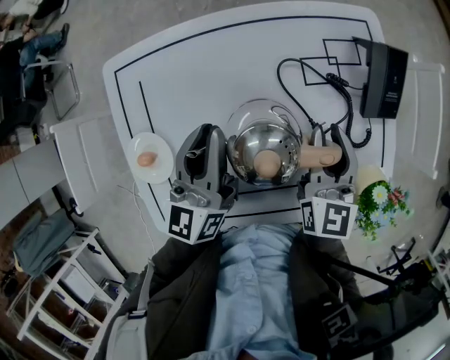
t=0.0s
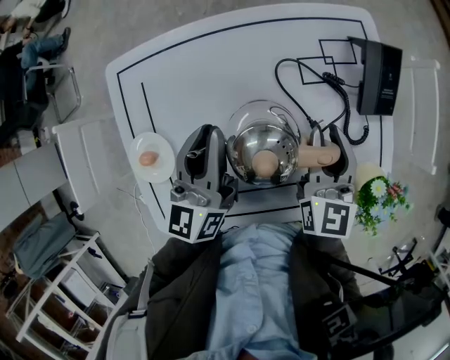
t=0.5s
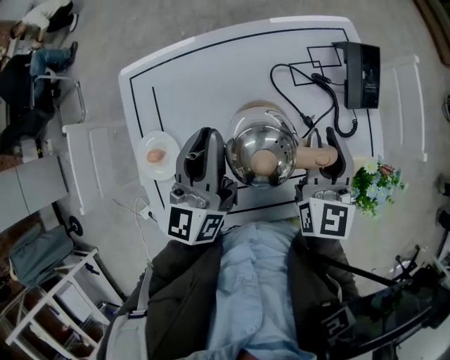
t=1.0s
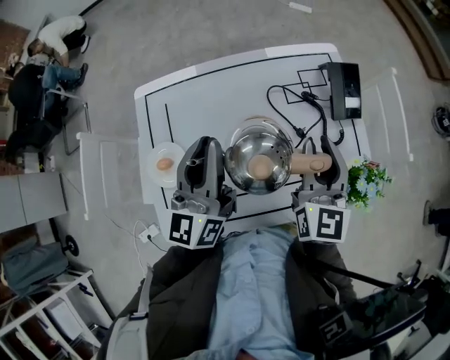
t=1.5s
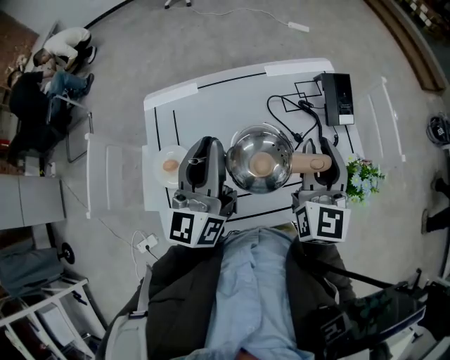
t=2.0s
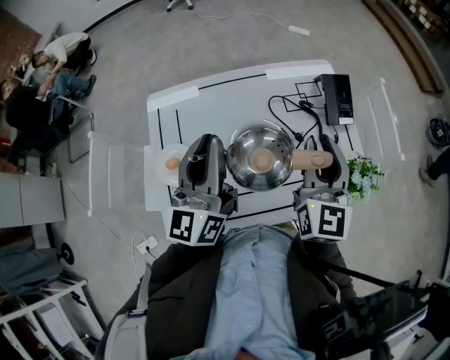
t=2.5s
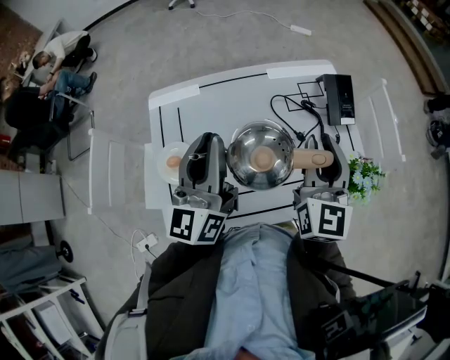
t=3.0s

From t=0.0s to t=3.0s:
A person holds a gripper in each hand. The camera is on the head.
From t=0.0s to t=1.5s: The two grippers go some 10 cm upward and backward.
From t=1.5s to t=3.0s: The grippers move only a little.

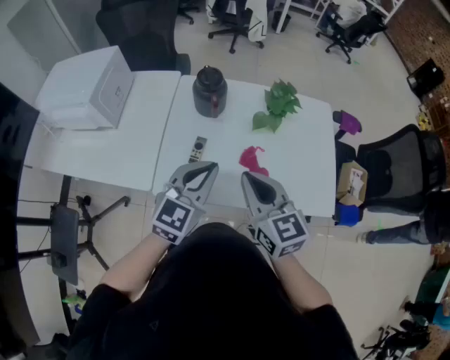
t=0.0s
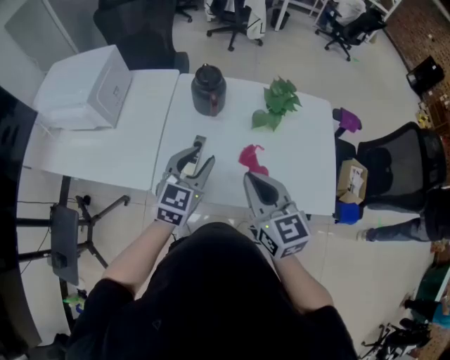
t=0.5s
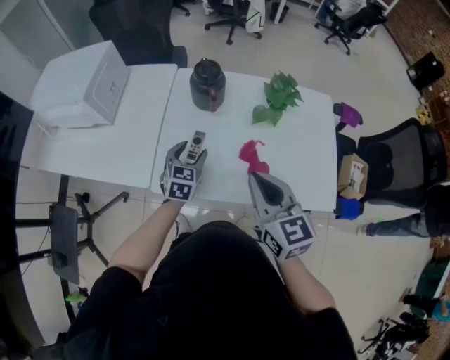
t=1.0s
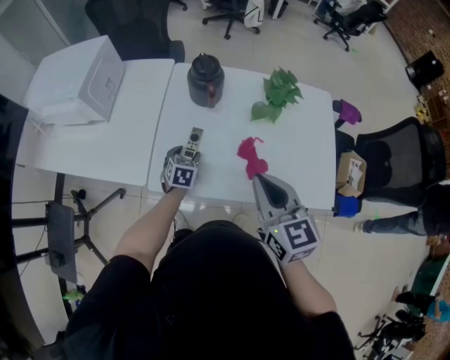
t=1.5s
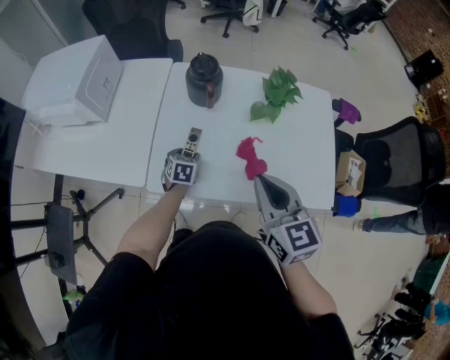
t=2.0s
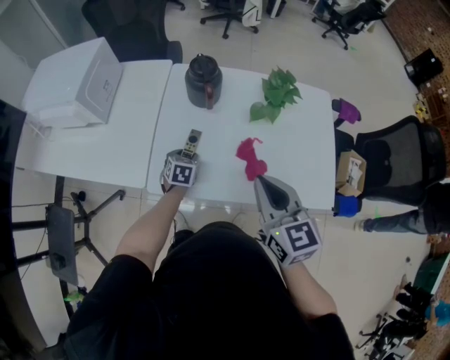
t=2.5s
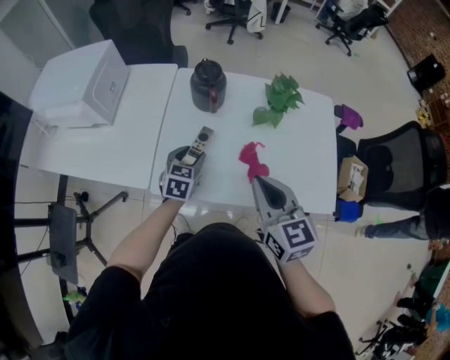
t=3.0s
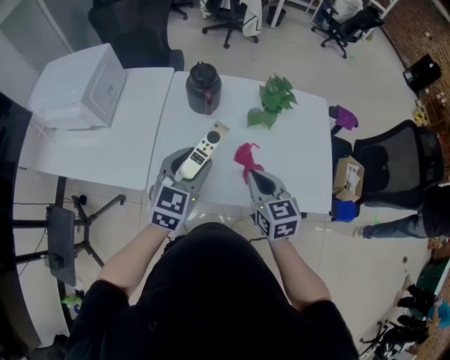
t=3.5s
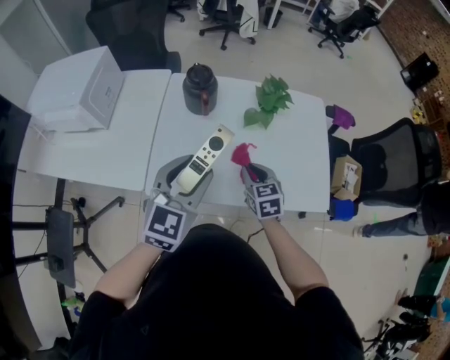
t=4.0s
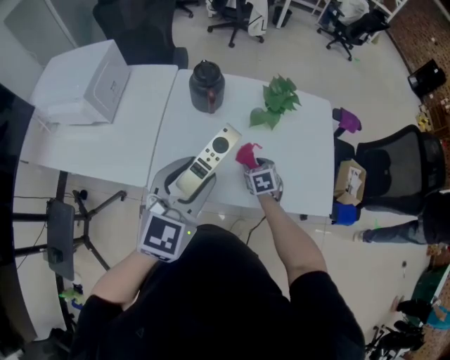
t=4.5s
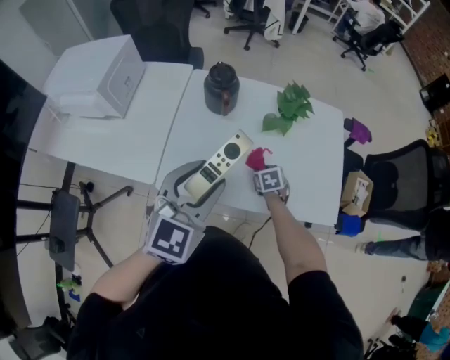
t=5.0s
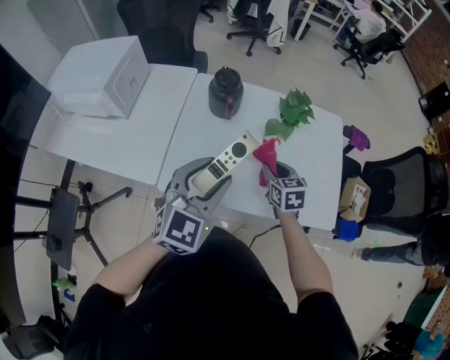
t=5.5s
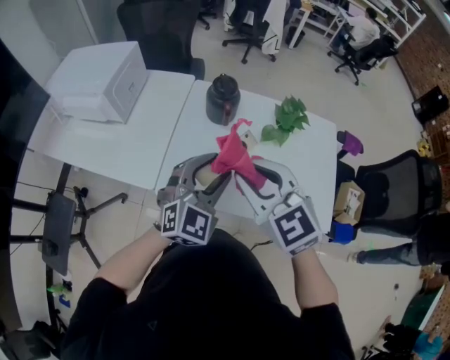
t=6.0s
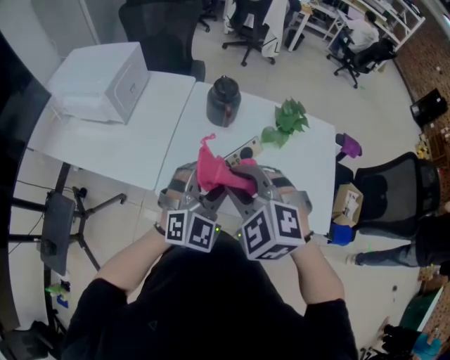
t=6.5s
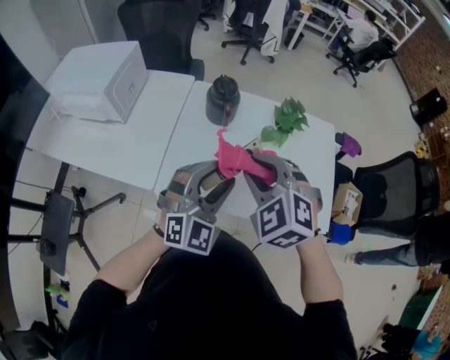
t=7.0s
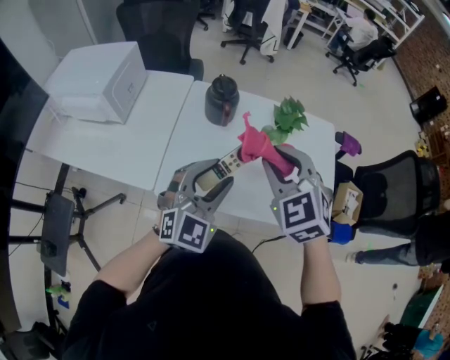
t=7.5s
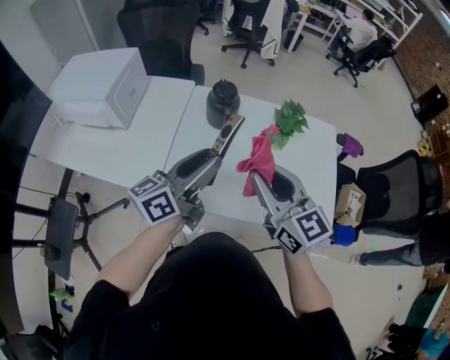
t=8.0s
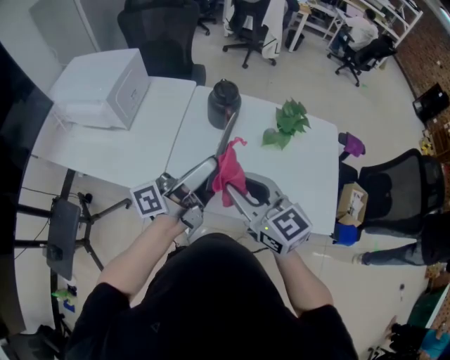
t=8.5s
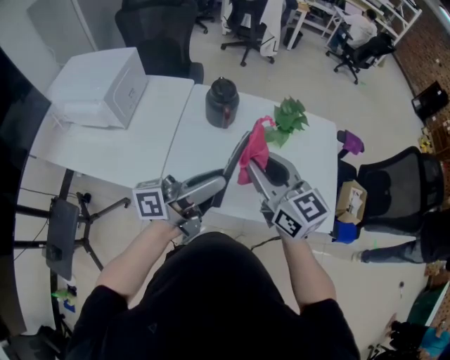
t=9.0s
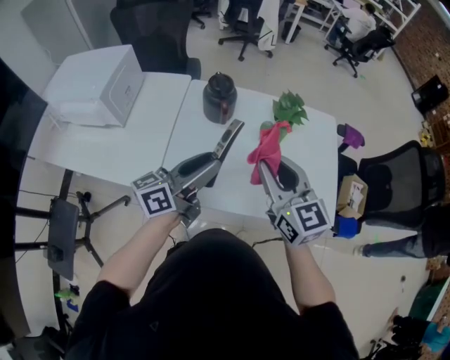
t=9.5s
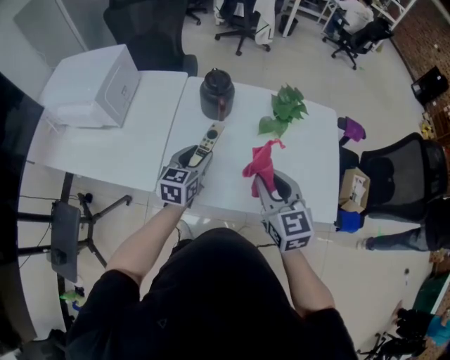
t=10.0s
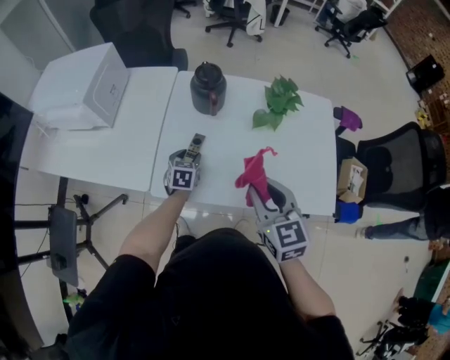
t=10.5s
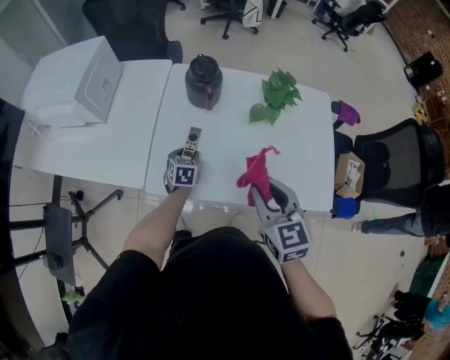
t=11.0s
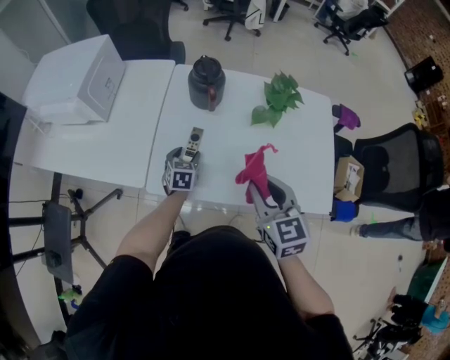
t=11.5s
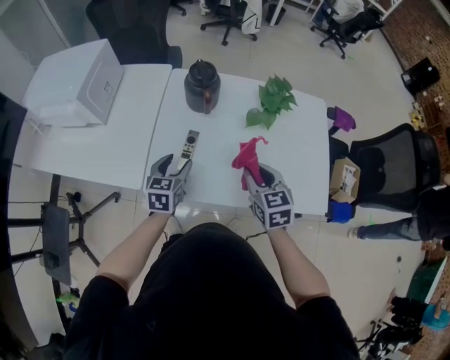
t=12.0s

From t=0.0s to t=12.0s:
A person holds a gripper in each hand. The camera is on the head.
From t=0.0s to t=2.0s: The left gripper travels downward by some 30 cm, tips its fingers downward by some 40 degrees, and opens up.
From t=2.0s to t=4.0s: The left gripper travels upward by approximately 30 cm, and tilts its fingers approximately 40 degrees upward; the right gripper heads downward and forward, covering some 15 cm.
From t=4.0s to t=6.0s: The right gripper shifts about 25 cm upward and to the left, turns by some 40 degrees, and opens and closes again.
From t=6.0s to t=8.0s: The left gripper moves about 5 cm, and twists some 70 degrees counterclockwise, seen from behind. The right gripper swivels approximately 30 degrees.
From t=8.0s to t=10.0s: The left gripper travels downward by some 20 cm, and angles its fingers downward, by about 30 degrees; the right gripper travels downward by approximately 10 cm, and swivels some 20 degrees.
From t=10.0s to t=12.0s: The right gripper travels downward by roughly 10 cm; the left gripper reaches about 20 cm downward, then returns.

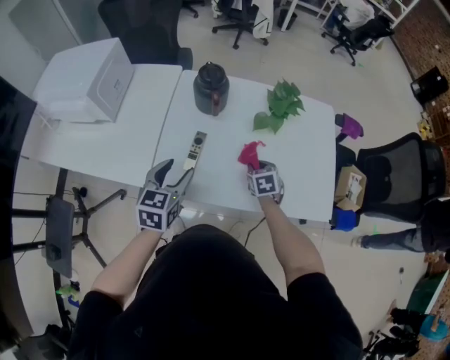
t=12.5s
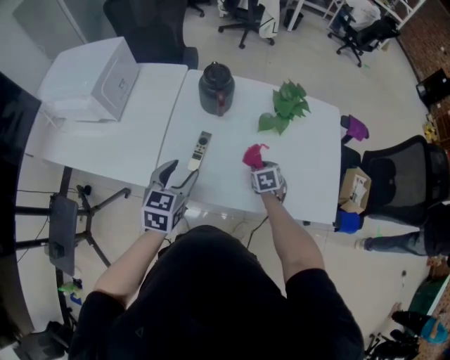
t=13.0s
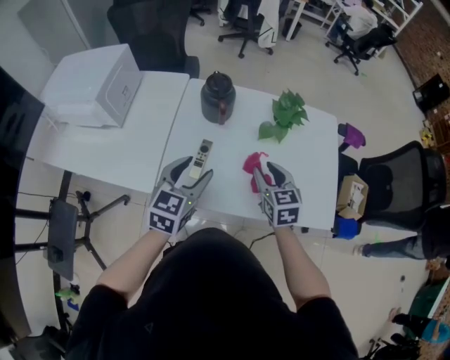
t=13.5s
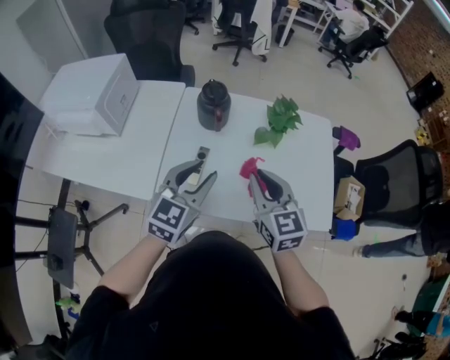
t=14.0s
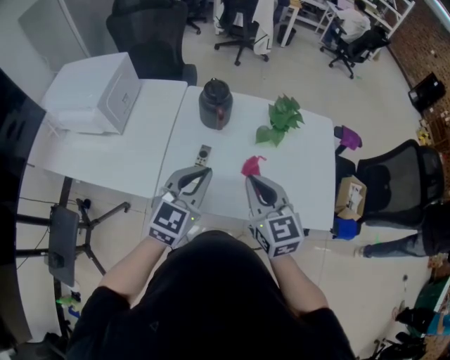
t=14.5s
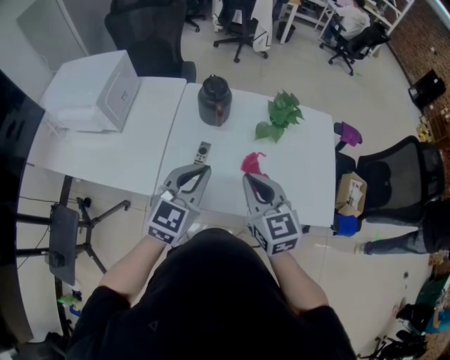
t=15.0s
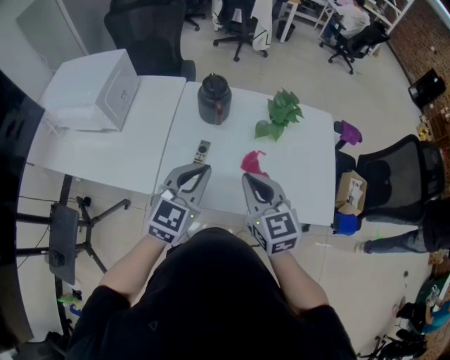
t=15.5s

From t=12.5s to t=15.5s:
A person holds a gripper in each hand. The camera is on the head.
From t=12.5s to t=14.0s: The left gripper is displaced upward and to the right by some 10 cm, changes its angle by about 20 degrees, and closes; the right gripper is displaced upward by roughly 25 cm, and points its fingers approximately 40 degrees further upward.
From t=14.0s to t=15.5s: The left gripper closes up.

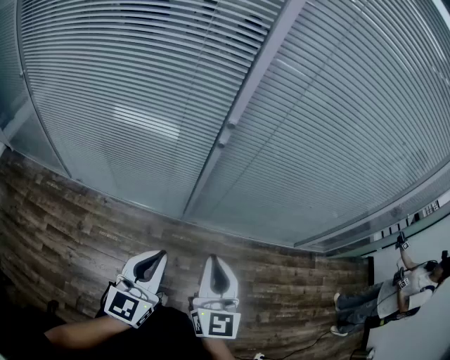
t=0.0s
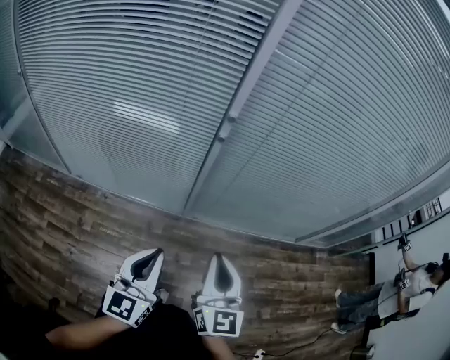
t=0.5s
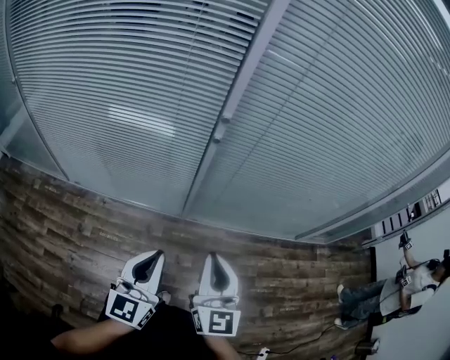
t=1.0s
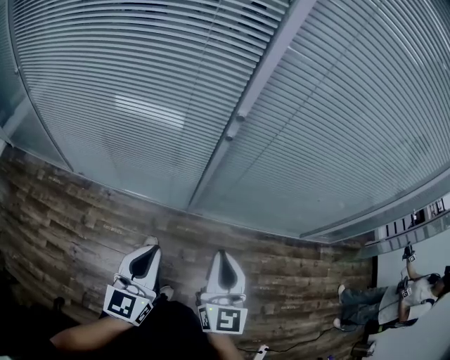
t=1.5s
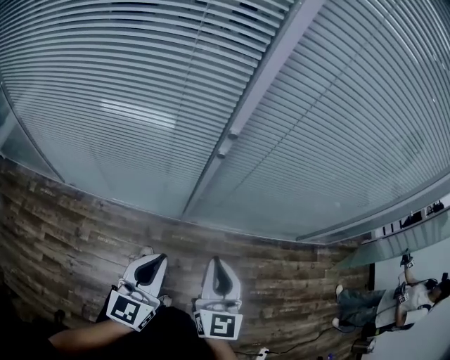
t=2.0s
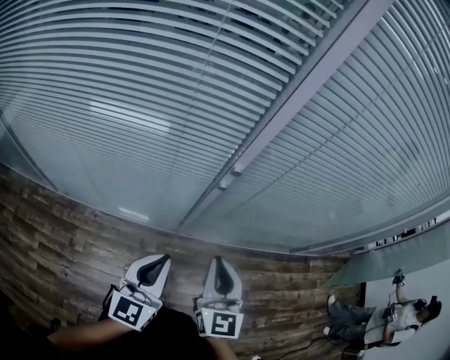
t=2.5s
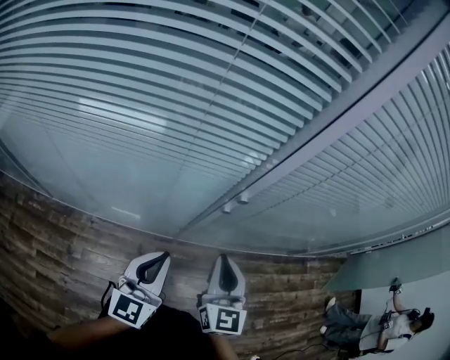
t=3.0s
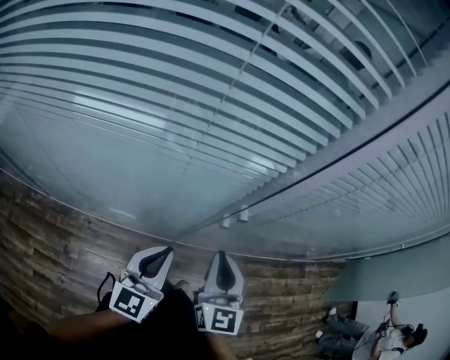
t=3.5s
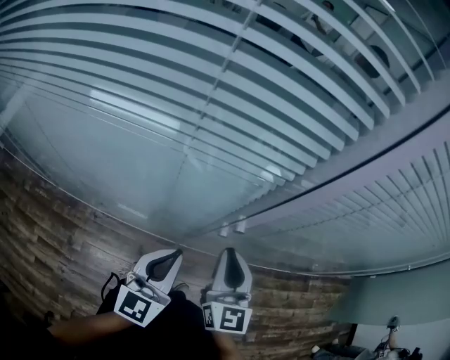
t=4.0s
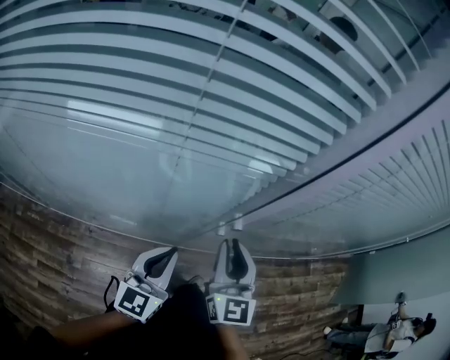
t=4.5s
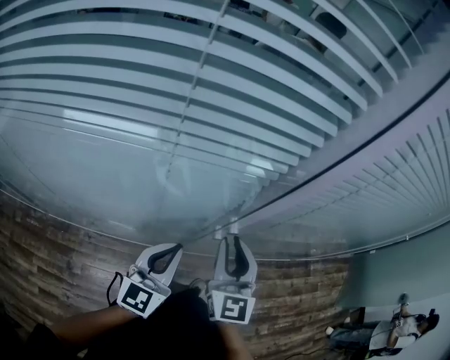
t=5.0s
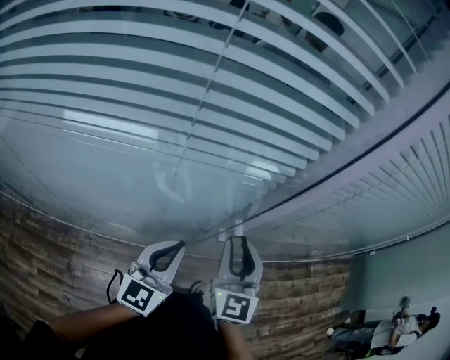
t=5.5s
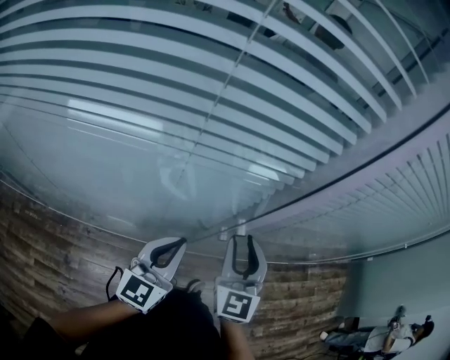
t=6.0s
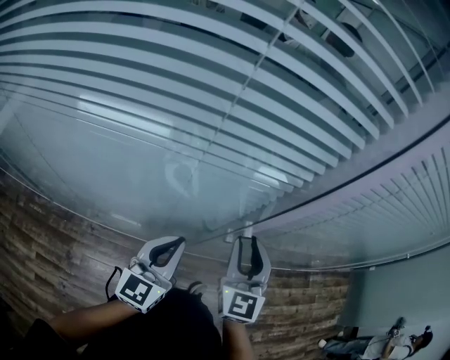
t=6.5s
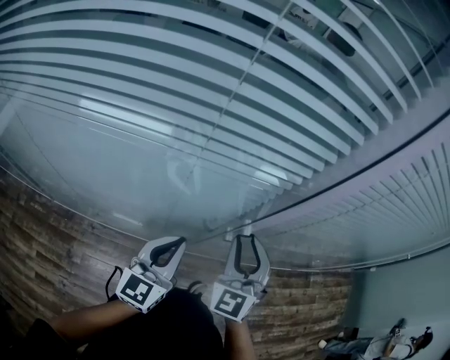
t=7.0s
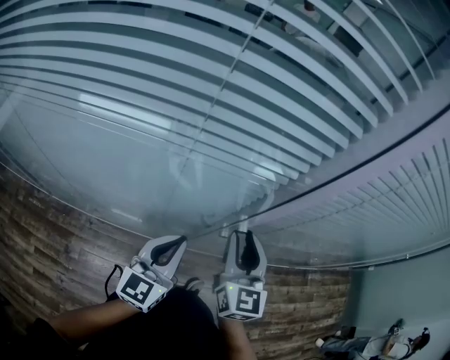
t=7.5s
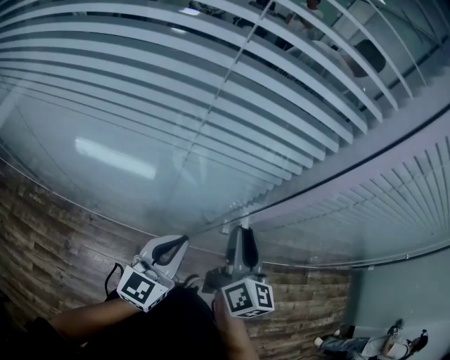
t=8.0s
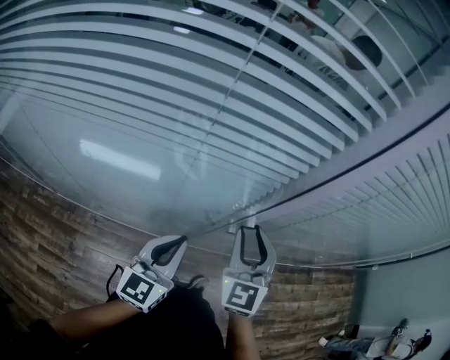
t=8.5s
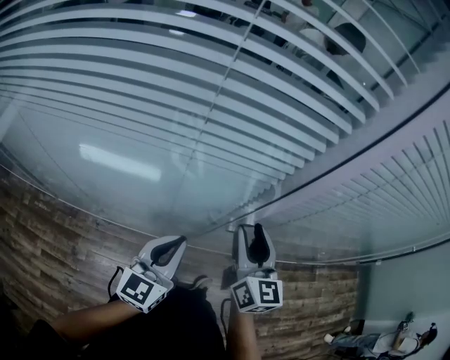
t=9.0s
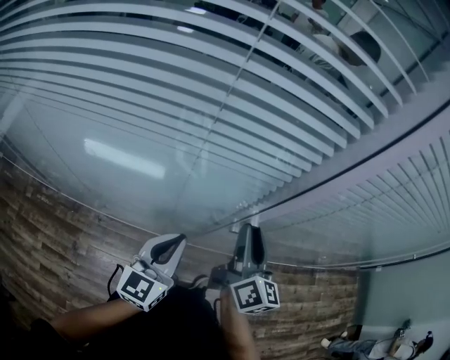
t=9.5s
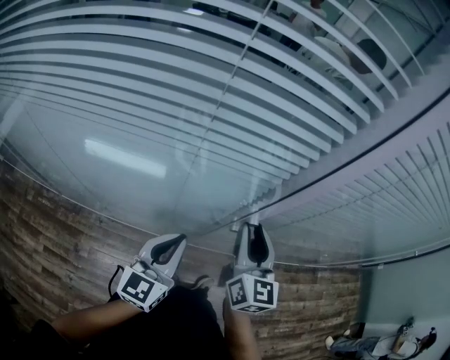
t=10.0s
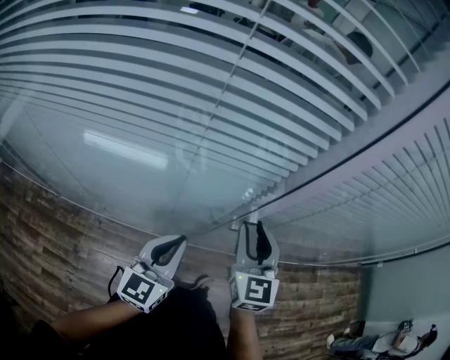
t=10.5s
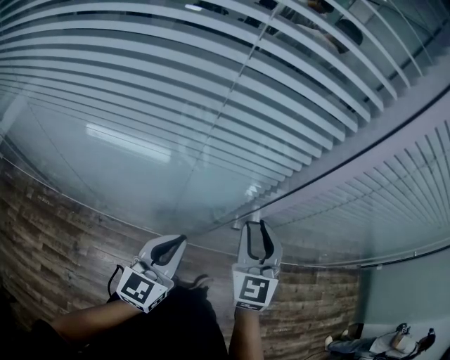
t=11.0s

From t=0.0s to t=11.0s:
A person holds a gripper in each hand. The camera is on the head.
From t=0.0s to t=2.0s: The two grippers go some 10 cm forward.
From t=2.0s to t=3.5s: Both grippers travel together forward, about 25 cm.
From t=3.5s to t=5.5s: Both grippers travel together forward, roughly 5 cm. The right gripper opens.
From t=9.0s to t=11.0s: The right gripper rotates about 30 degrees.
